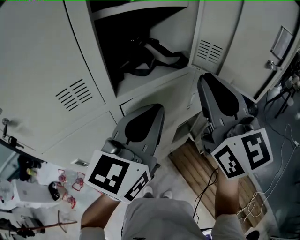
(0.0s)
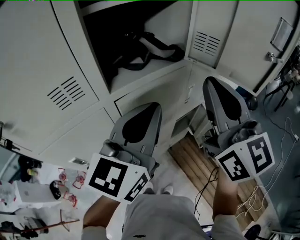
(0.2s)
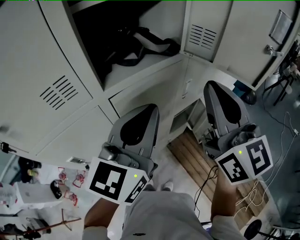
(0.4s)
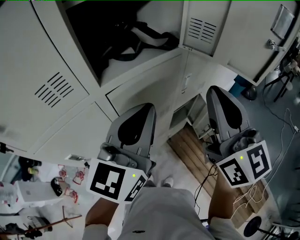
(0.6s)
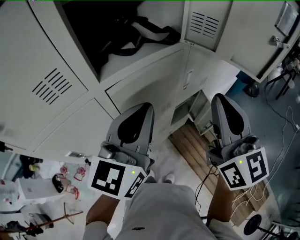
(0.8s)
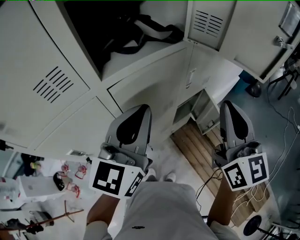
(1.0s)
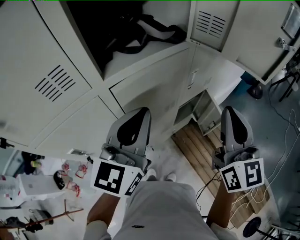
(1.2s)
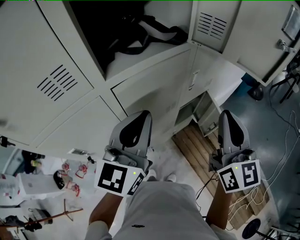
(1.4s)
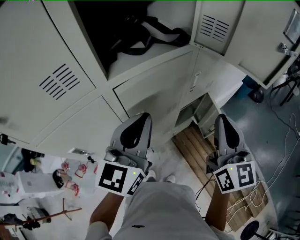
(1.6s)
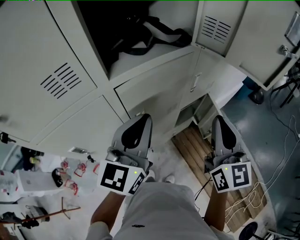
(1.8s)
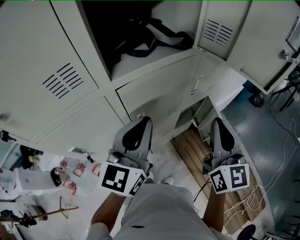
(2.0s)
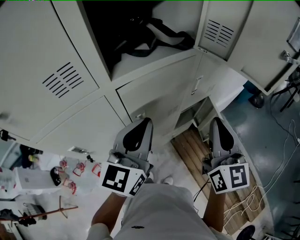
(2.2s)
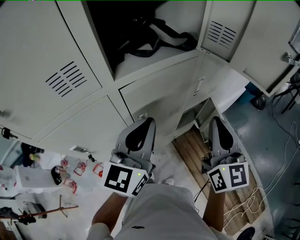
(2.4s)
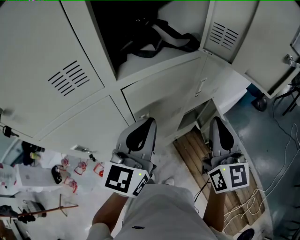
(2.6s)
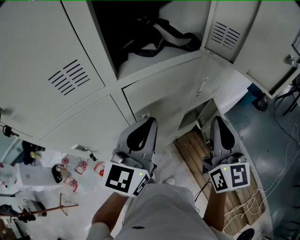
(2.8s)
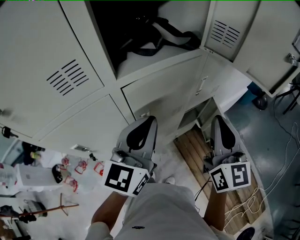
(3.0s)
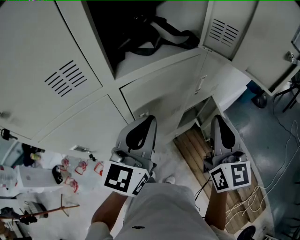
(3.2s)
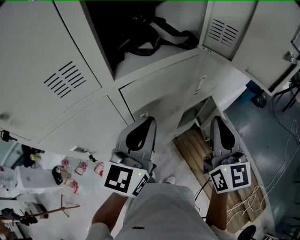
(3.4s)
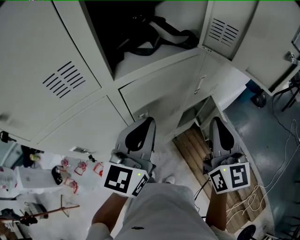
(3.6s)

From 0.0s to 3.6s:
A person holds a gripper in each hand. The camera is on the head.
From 0.0s to 1.8s: The left gripper heads downward, covering some 10 cm; the right gripper goes roughly 20 cm downward and to the right.
From 1.8s to 3.6s: The grippers make only small movements.

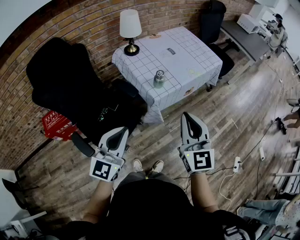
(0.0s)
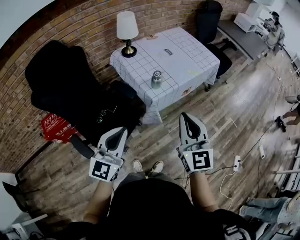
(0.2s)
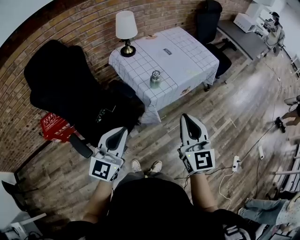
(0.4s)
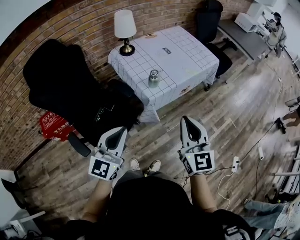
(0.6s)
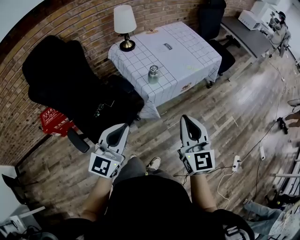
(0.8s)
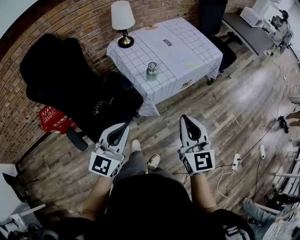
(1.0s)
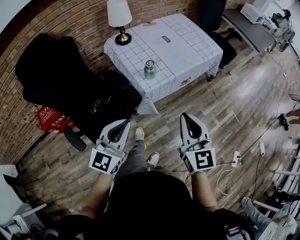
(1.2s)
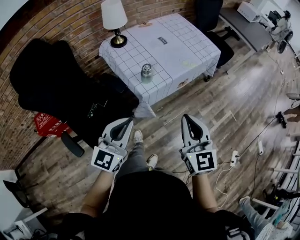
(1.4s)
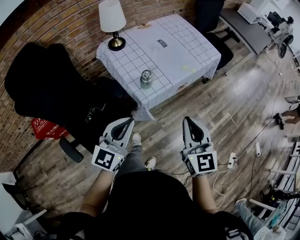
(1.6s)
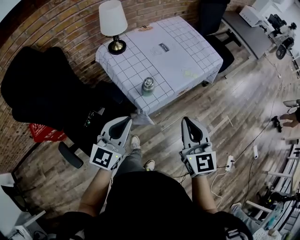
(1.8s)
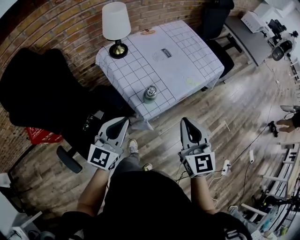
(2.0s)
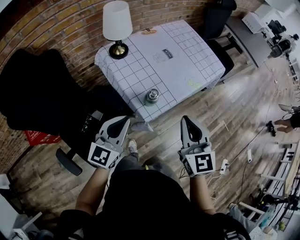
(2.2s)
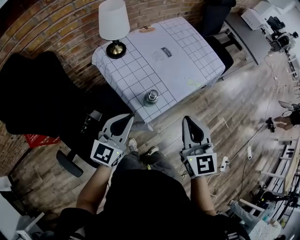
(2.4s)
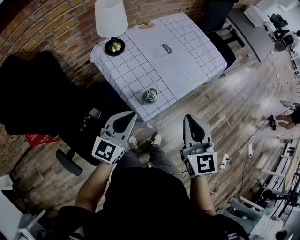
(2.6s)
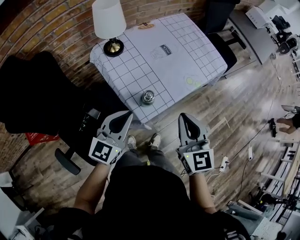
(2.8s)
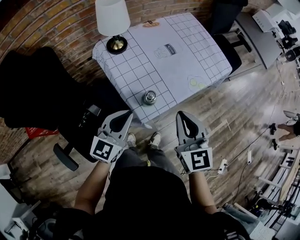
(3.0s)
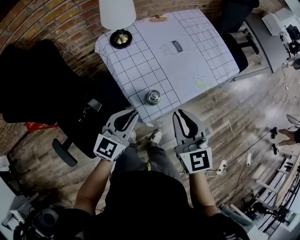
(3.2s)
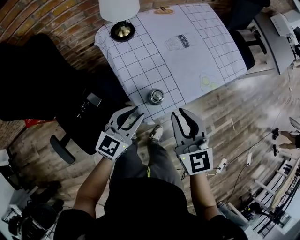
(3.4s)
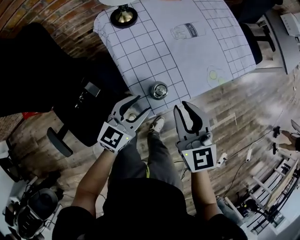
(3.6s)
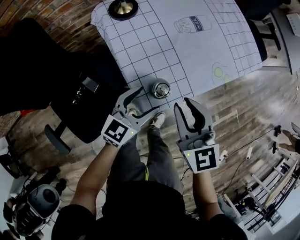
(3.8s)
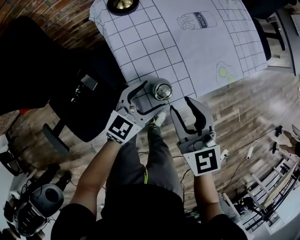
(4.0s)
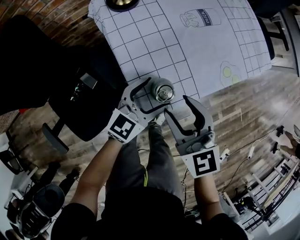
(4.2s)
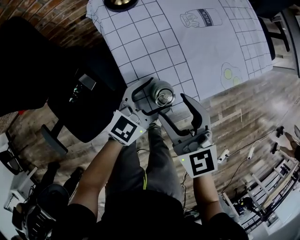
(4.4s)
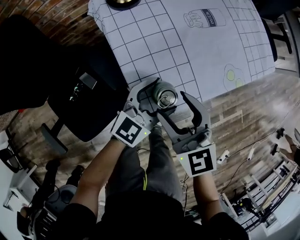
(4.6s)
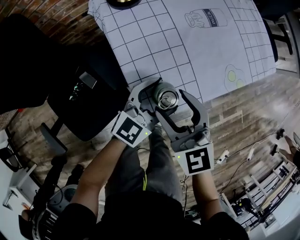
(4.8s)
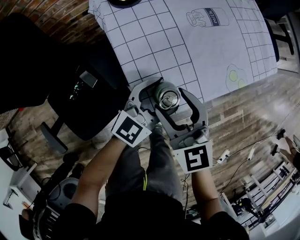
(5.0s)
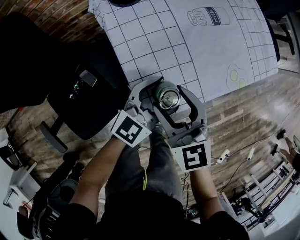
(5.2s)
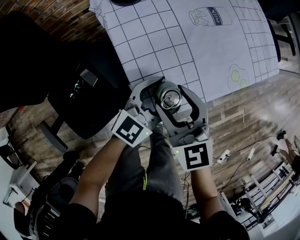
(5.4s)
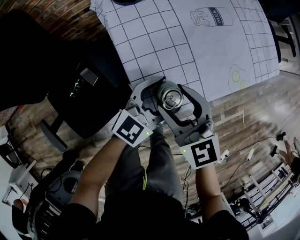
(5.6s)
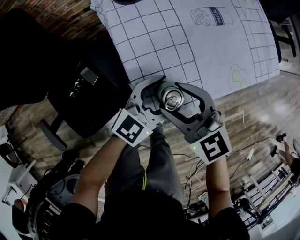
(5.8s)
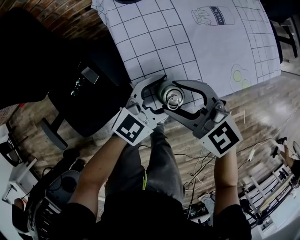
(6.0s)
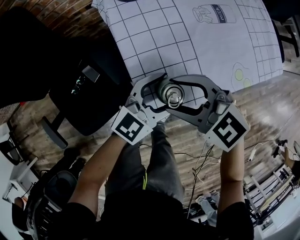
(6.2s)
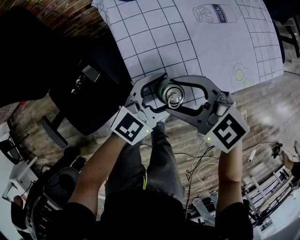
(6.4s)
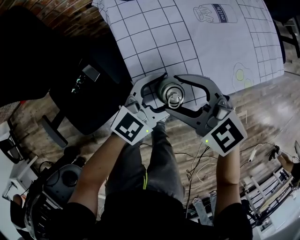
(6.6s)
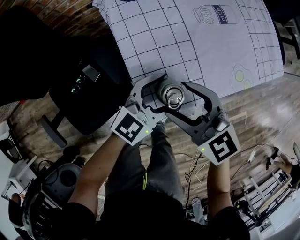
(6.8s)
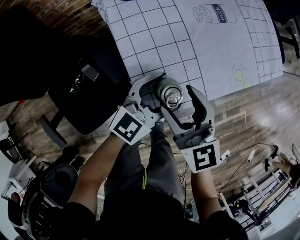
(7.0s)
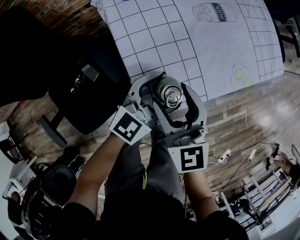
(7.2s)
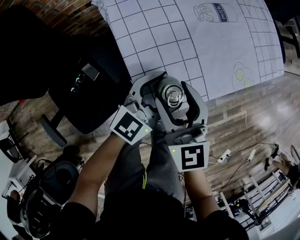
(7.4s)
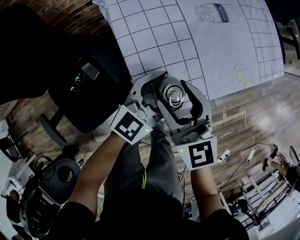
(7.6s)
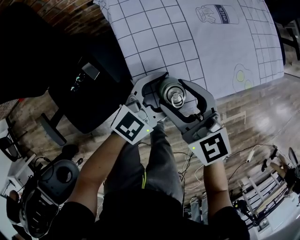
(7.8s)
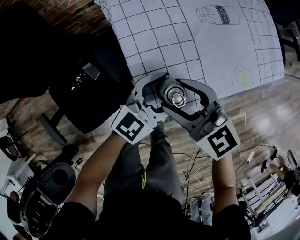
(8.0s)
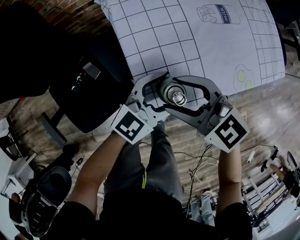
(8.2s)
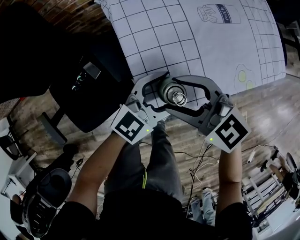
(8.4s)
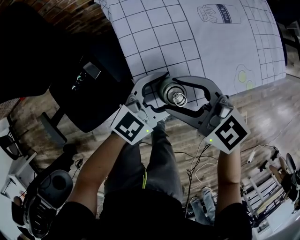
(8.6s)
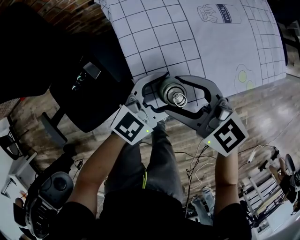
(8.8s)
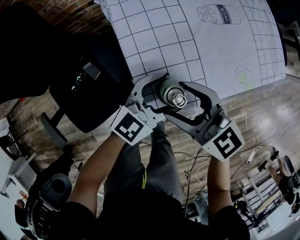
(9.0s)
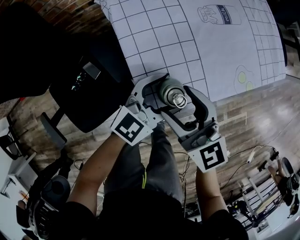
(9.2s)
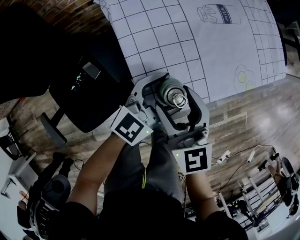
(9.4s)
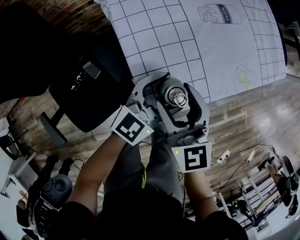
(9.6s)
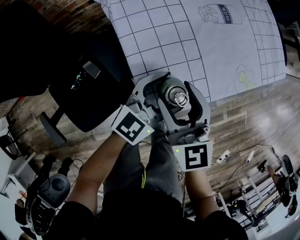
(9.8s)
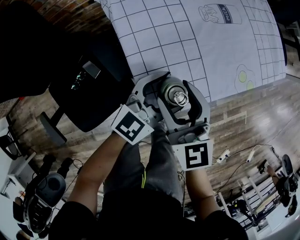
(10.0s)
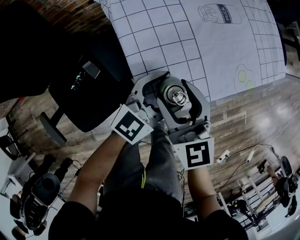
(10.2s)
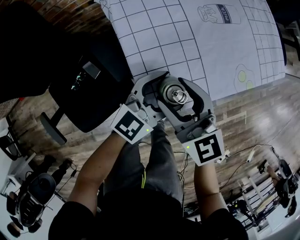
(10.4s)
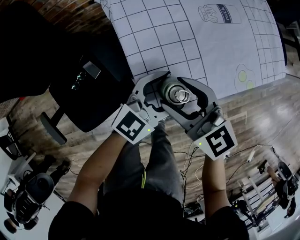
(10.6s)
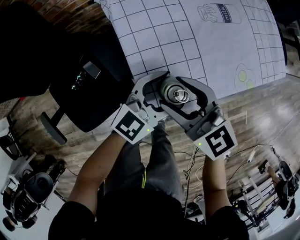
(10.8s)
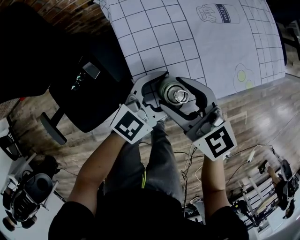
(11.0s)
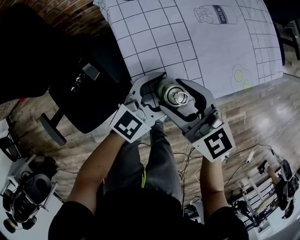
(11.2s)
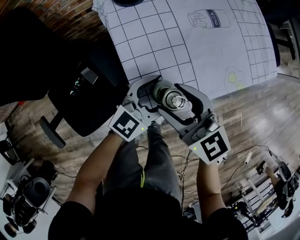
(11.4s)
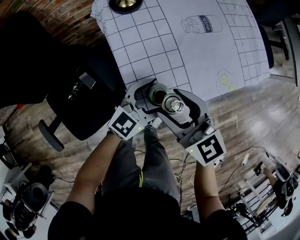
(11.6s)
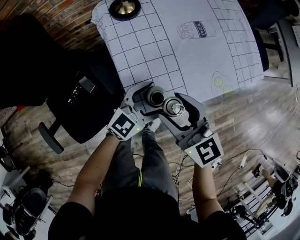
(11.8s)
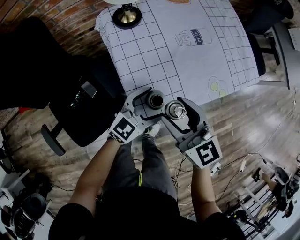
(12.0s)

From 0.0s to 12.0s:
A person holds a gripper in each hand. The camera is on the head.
From 0.0s to 1.6s: The two grippers go approximately 15 cm forward, to the right and downward.
From 1.6s to 3.0s: The left gripper goes roughly 15 cm forward. The right gripper is displaced forward and to the left by some 20 cm.
From 3.0s to 4.4s: The left gripper is displaced downward, forward and to the right by about 20 cm, and opens, while the right gripper travels downward, to the left and forward by about 20 cm, turns by some 20 degrees, and opens its fingers.
From 4.4s to 6.0s: The right gripper rotates approximately 40 degrees.
From 6.0s to 7.6s: The right gripper swivels roughly 40 degrees.
From 7.6s to 9.0s: The right gripper swivels some 30 degrees.
From 10.4s to 12.0s: The right gripper shifts approximately 10 cm upward.

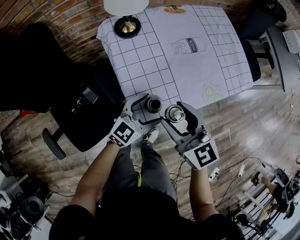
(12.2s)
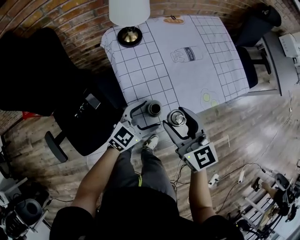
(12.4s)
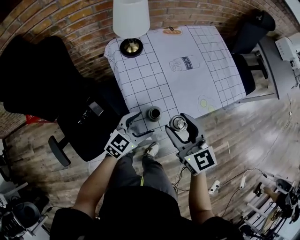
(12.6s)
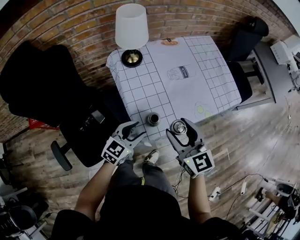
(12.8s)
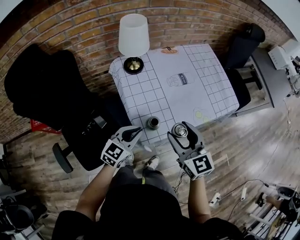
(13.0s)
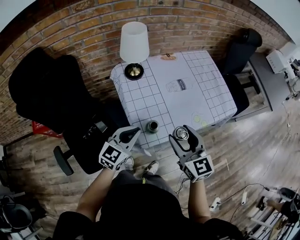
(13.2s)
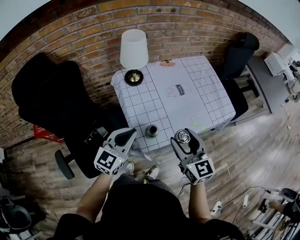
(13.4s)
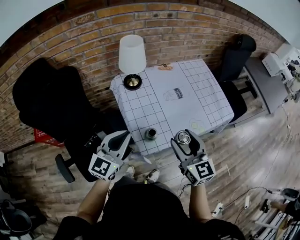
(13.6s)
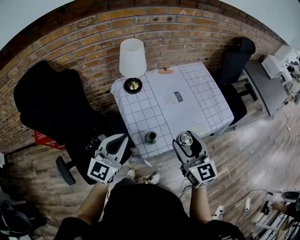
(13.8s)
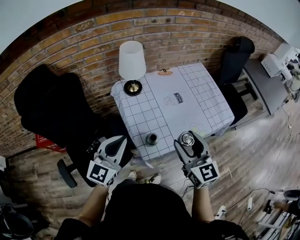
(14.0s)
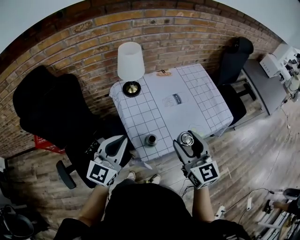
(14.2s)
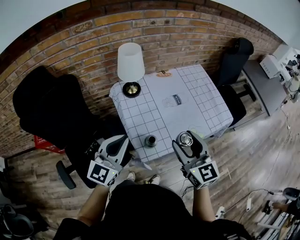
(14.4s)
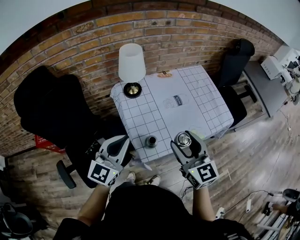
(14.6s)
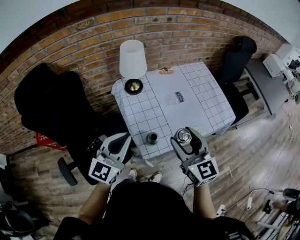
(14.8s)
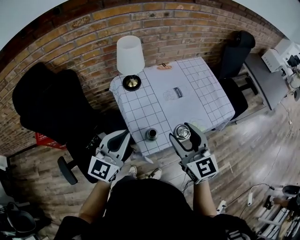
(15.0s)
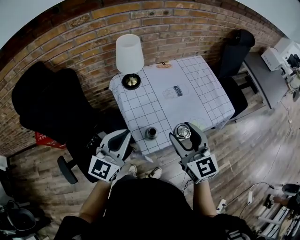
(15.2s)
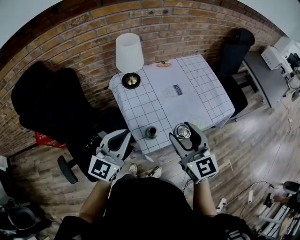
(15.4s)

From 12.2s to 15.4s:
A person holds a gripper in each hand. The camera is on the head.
From 12.2s to 13.8s: The right gripper goes approximately 15 cm upward and to the right; the left gripper is displaced upward and to the left by roughly 25 cm, rotates some 30 degrees, and closes up.
From 13.8s to 15.4s: The grippers move only a little.

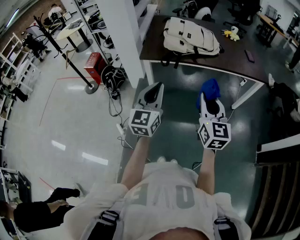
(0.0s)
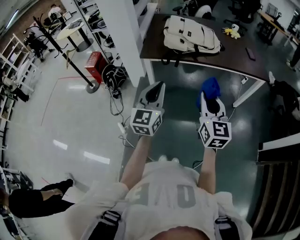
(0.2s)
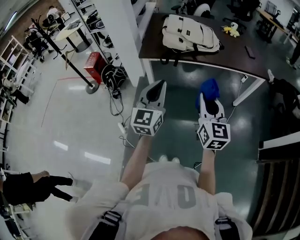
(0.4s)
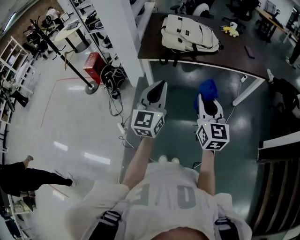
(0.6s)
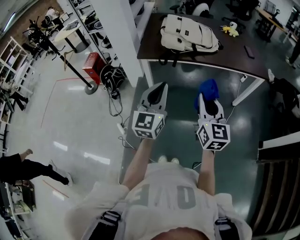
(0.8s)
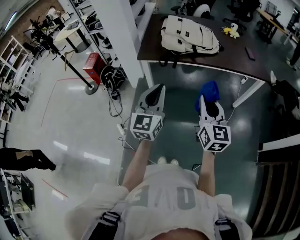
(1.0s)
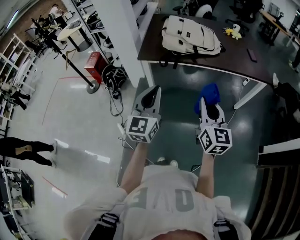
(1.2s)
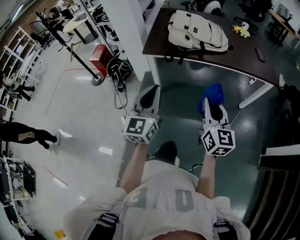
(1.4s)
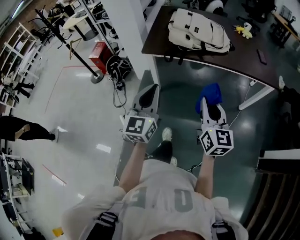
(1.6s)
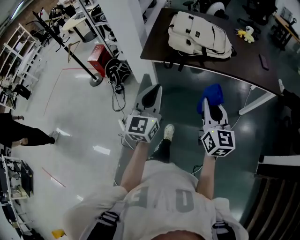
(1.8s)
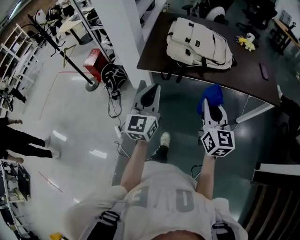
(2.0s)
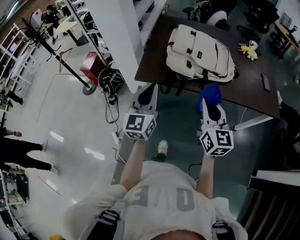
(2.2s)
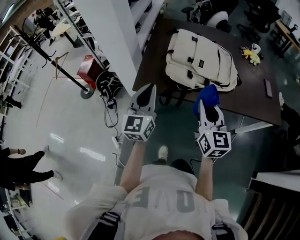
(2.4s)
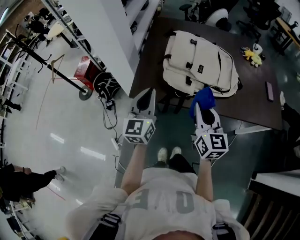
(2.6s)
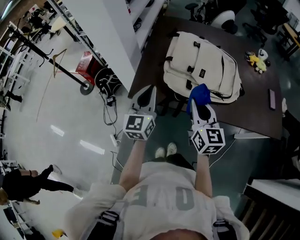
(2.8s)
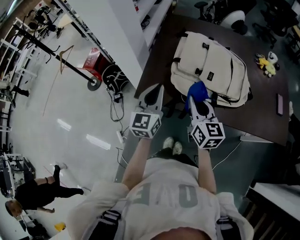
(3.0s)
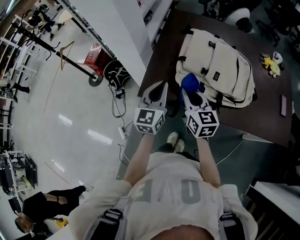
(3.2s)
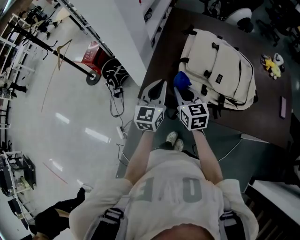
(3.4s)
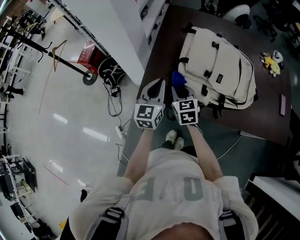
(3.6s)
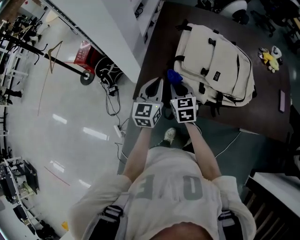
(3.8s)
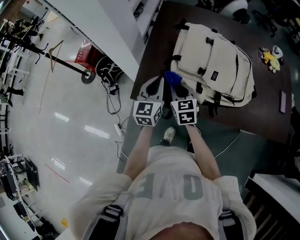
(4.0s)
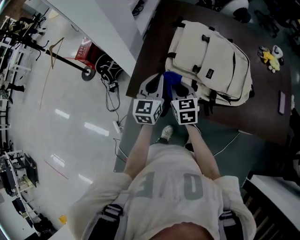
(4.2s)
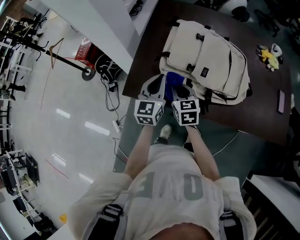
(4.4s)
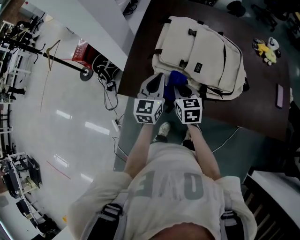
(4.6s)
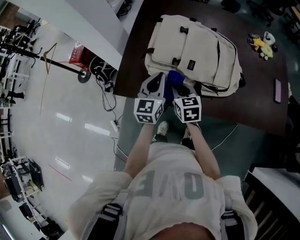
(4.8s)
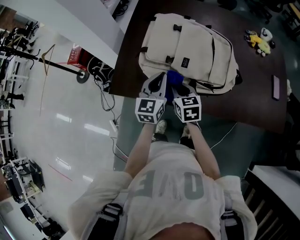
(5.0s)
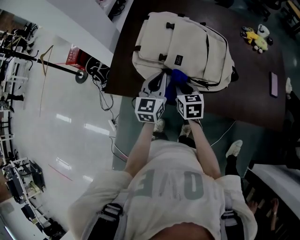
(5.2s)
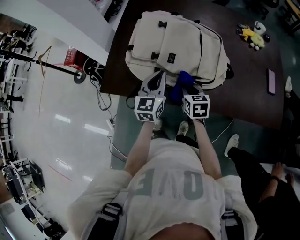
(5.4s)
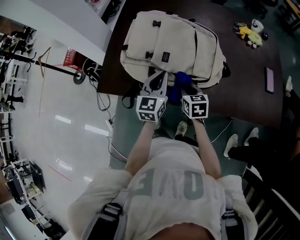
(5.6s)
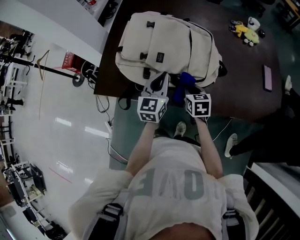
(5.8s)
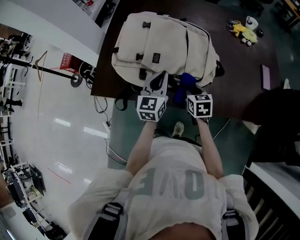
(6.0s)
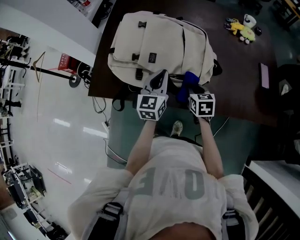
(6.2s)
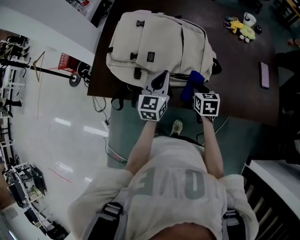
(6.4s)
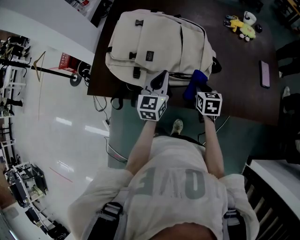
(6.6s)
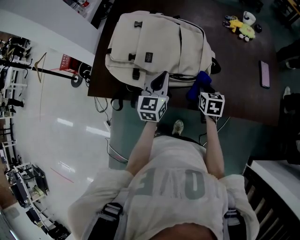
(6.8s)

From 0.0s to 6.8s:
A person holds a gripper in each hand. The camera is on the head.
From 0.0s to 1.4s: The grippers make only small movements.
From 1.4s to 2.8s: The pair of grippers is taken forward, approximately 40 cm.
From 2.8s to 4.0s: The left gripper shifts roughly 15 cm forward and downward. The right gripper goes some 20 cm downward, forward and to the left, and changes its angle by some 30 degrees.
From 4.0s to 5.4s: The grippers both shift to the right by roughly 20 cm.
From 5.4s to 6.8s: The right gripper travels to the right by some 15 cm. The left gripper heads to the right, covering about 10 cm.
